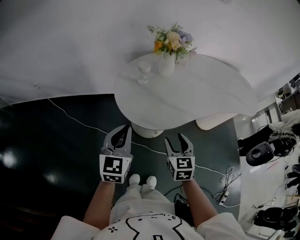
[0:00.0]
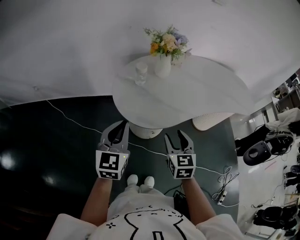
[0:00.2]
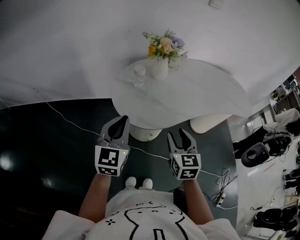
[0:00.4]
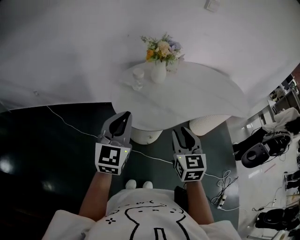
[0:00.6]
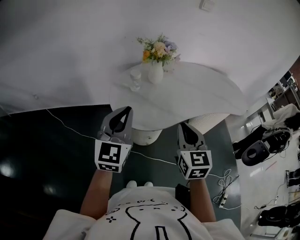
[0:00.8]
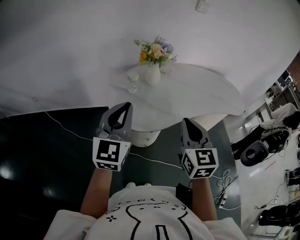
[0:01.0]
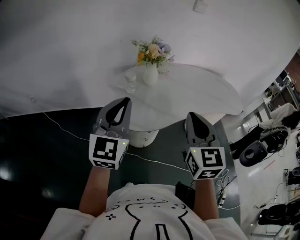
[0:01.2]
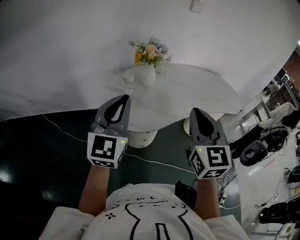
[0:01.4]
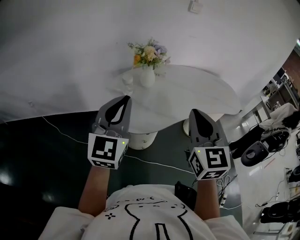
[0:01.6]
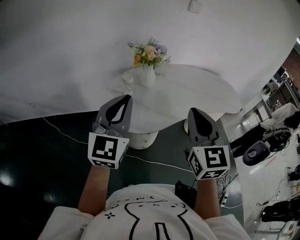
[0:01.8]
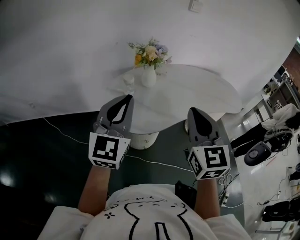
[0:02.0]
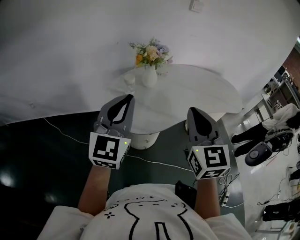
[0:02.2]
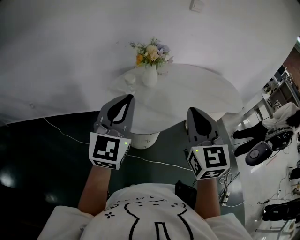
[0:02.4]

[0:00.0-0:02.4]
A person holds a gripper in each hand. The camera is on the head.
0:00.0 to 0:01.2: Both grippers move upward, approximately 20 cm. The left gripper turns by roughly 20 degrees. The right gripper swivels about 20 degrees, and closes up.
0:01.2 to 0:02.4: The grippers stay close to where they were, moving slightly.

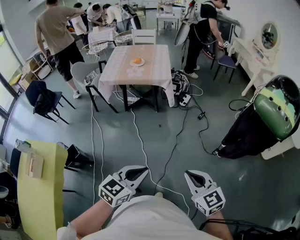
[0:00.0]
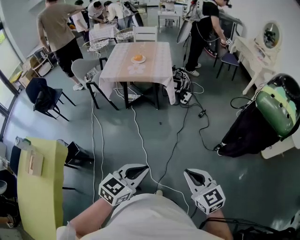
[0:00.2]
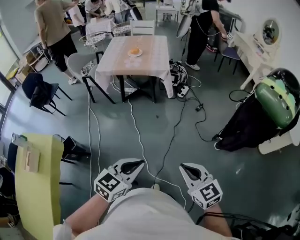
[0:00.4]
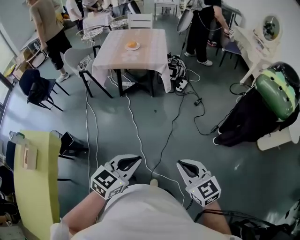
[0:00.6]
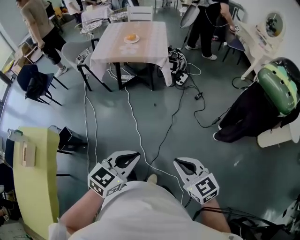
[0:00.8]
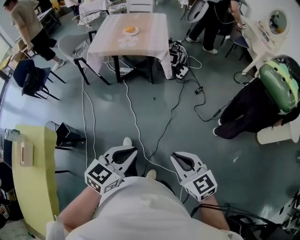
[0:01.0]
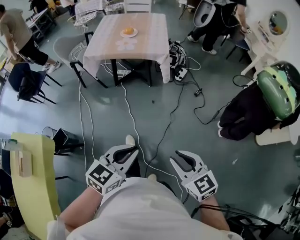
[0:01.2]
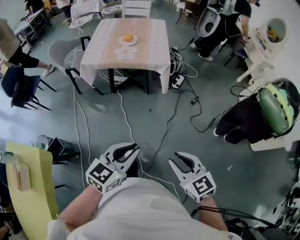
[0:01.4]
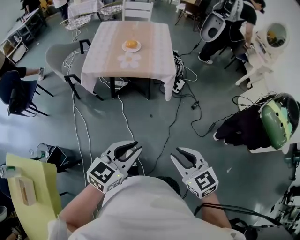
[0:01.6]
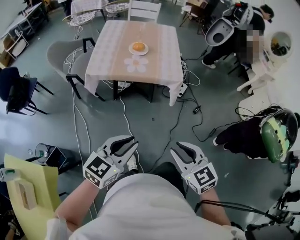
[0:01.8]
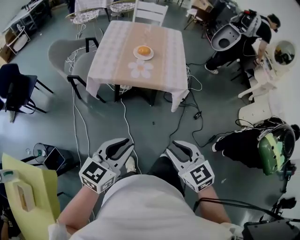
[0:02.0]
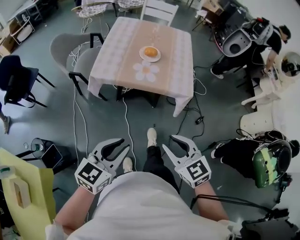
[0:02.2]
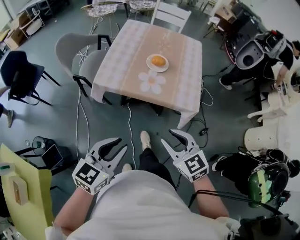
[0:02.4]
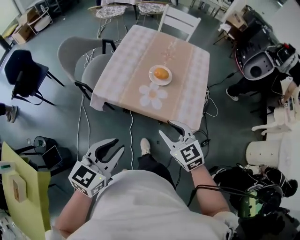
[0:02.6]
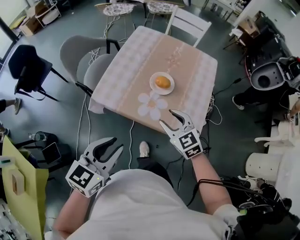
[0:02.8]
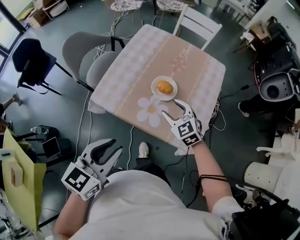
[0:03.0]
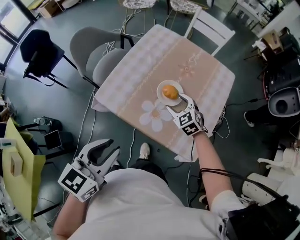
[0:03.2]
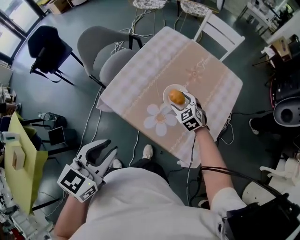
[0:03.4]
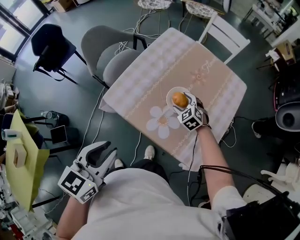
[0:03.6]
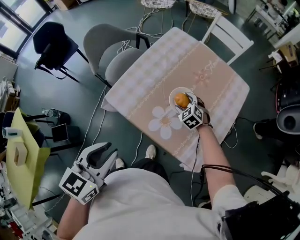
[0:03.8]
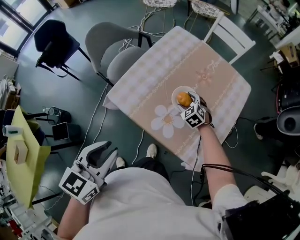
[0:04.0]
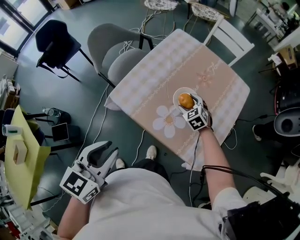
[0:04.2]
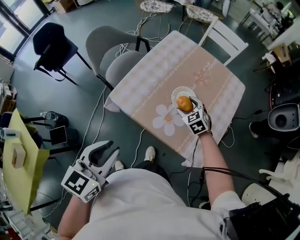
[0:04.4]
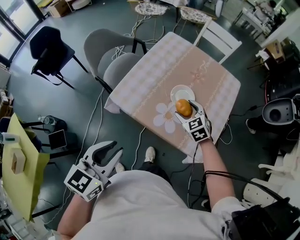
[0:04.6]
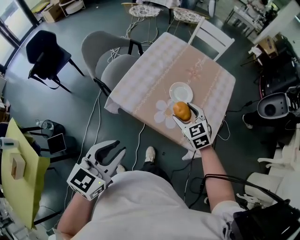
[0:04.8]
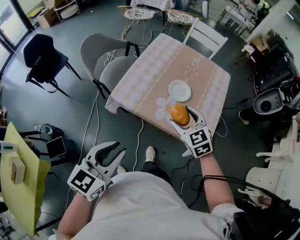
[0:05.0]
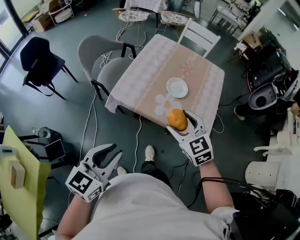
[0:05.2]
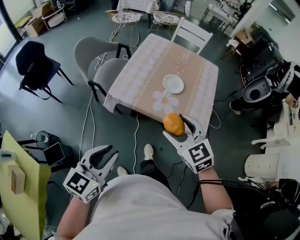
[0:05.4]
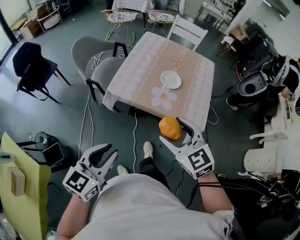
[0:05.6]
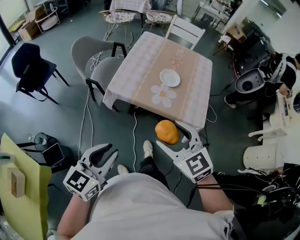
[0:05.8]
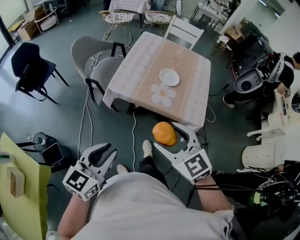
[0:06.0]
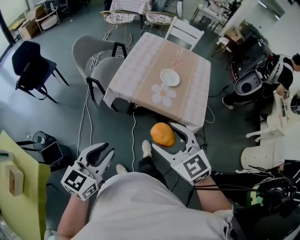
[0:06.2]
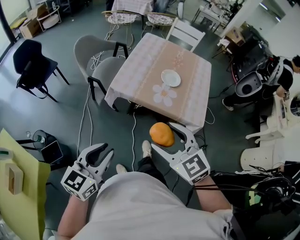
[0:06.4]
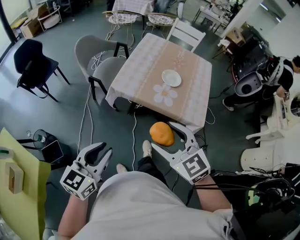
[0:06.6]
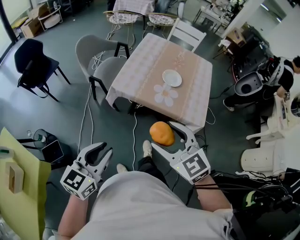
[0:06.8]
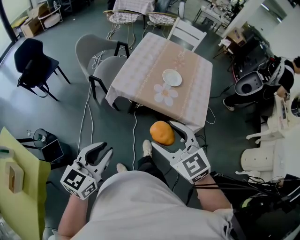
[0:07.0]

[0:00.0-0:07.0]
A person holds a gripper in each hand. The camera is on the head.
0:00.0 to 0:01.4: Both grippers travel together forward and to the left, roughly 20 cm.
0:01.4 to 0:02.8: The two grippers travel together, forward, some 60 cm. The right gripper changes its angle by about 30 degrees, while the left gripper turns by roughly 30 degrees.
0:02.8 to 0:04.2: The left gripper travels forward by approximately 5 cm, and swivels some 20 degrees. Meanwhile the right gripper is displaced forward and downward by approximately 25 cm, changes its angle by approximately 20 degrees, and opens up.
0:04.2 to 0:05.6: The right gripper travels backward and upward by some 50 cm, and swivels roughly 30 degrees. The left gripper goes about 20 cm backward and to the left, and rotates about 20 degrees.
0:05.6 to 0:07.0: The left gripper ends up approximately 5 cm from where it was. The right gripper goes roughly 10 cm backward and to the left.

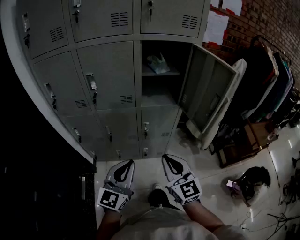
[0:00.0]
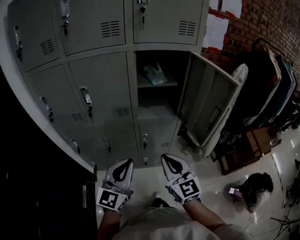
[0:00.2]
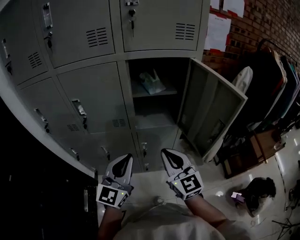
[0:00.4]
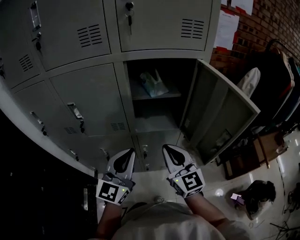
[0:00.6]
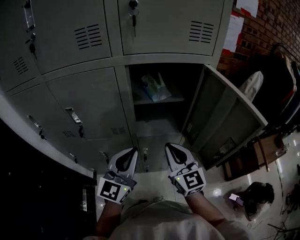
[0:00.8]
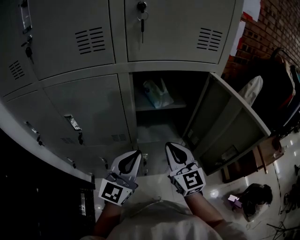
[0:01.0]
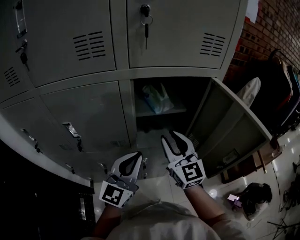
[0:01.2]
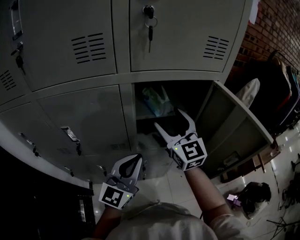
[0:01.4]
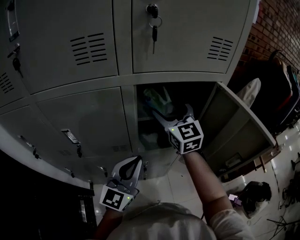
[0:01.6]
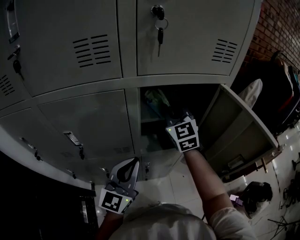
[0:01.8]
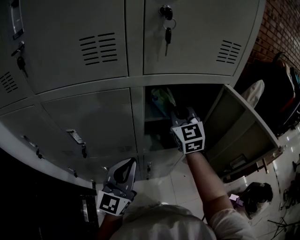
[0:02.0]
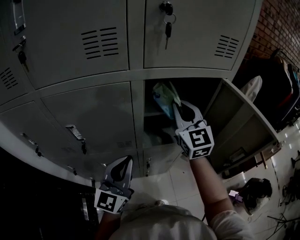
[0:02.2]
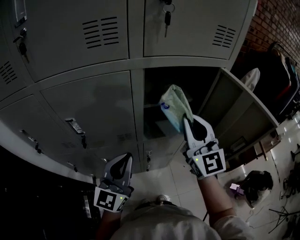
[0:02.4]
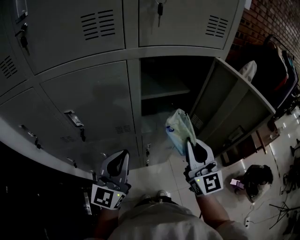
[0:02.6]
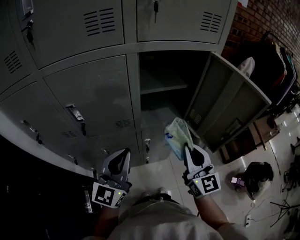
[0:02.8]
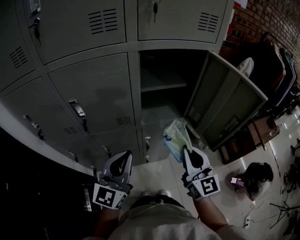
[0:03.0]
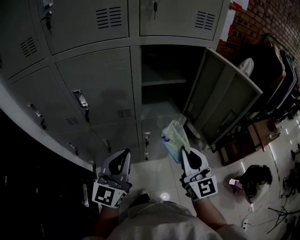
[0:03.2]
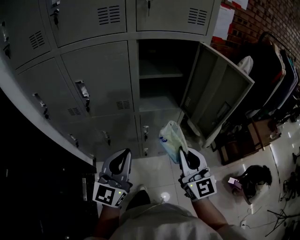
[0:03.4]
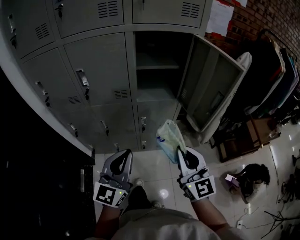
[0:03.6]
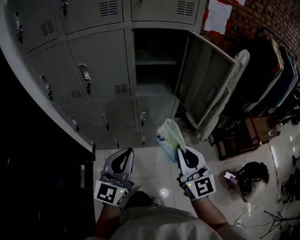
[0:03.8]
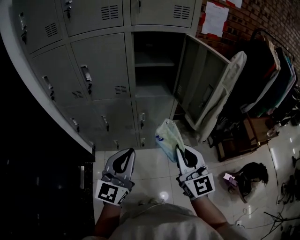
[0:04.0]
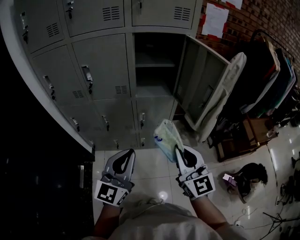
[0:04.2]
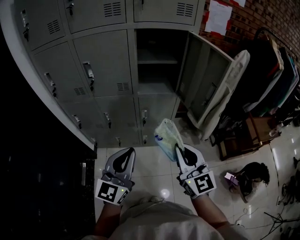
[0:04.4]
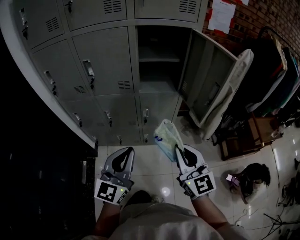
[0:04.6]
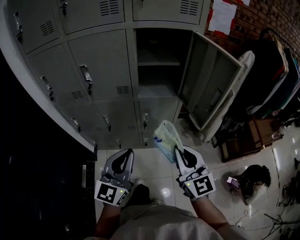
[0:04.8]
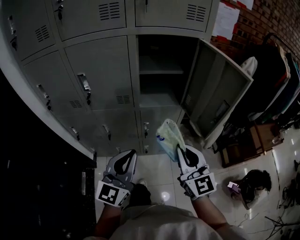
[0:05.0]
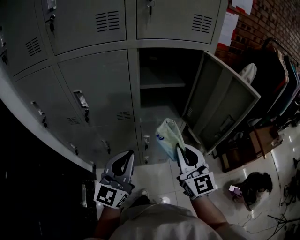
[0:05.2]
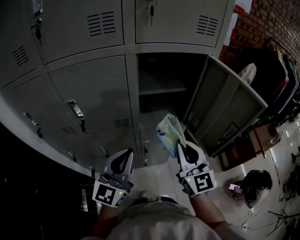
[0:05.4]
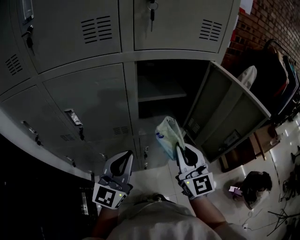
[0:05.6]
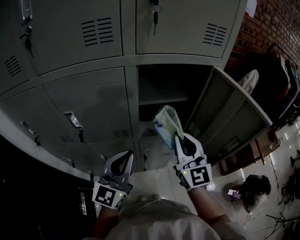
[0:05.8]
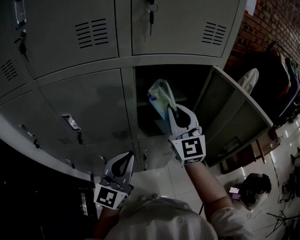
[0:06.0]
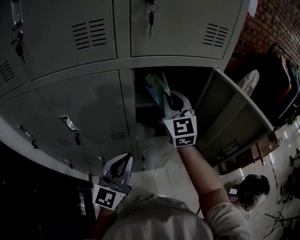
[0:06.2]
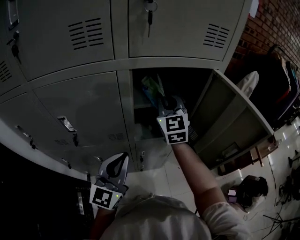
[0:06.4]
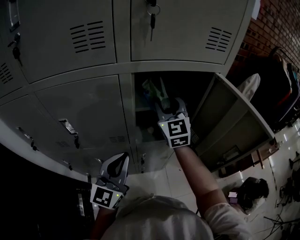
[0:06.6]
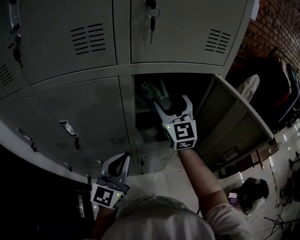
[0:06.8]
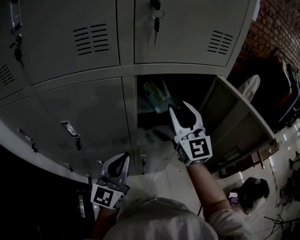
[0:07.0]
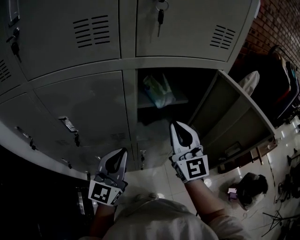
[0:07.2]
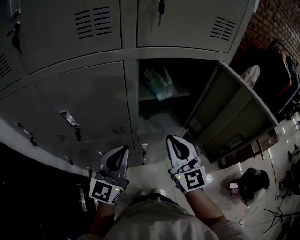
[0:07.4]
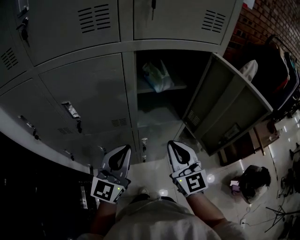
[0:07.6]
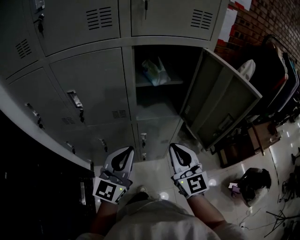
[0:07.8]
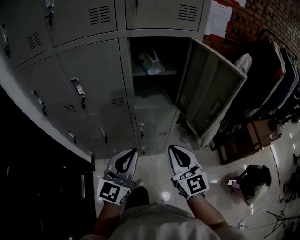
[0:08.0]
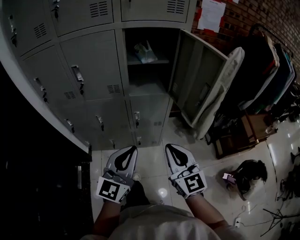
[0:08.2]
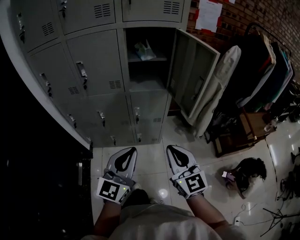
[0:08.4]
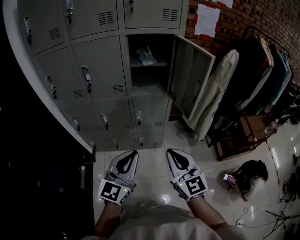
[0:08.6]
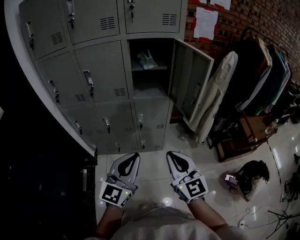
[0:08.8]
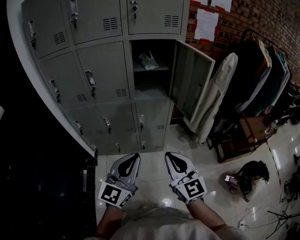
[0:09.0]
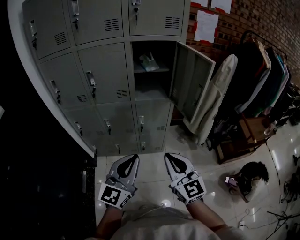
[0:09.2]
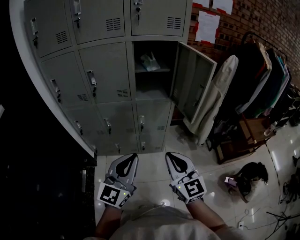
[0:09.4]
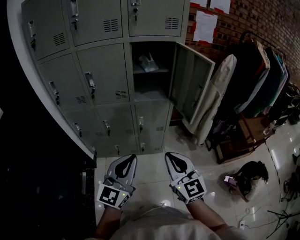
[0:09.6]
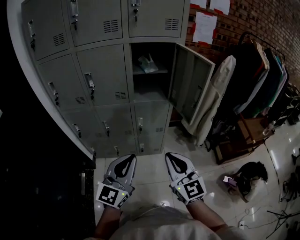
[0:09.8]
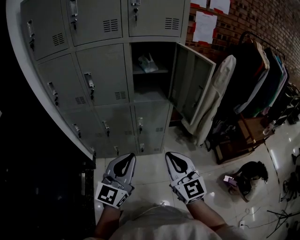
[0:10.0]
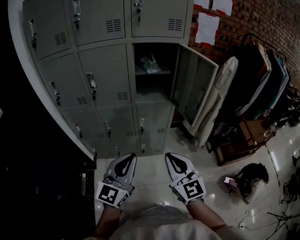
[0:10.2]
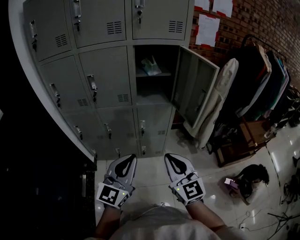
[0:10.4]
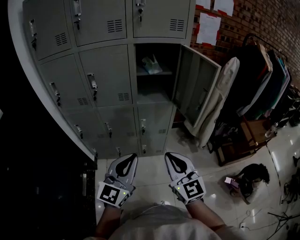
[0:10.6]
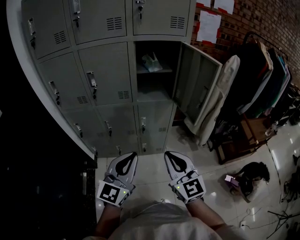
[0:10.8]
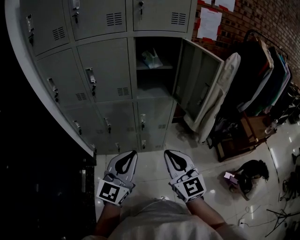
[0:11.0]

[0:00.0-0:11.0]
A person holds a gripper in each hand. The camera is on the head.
0:00.0 to 0:01.6: The left gripper goes roughly 30 cm forward; the right gripper is displaced forward by roughly 40 cm, and opens.
0:01.6 to 0:03.2: The left gripper travels backward by approximately 15 cm. Meanwhile the right gripper goes about 30 cm backward, and closes its fingers.
0:03.2 to 0:04.8: The right gripper goes about 10 cm backward. Meanwhile the left gripper travels backward and to the right by about 15 cm.
0:04.8 to 0:06.2: The right gripper heads forward, covering some 40 cm, and rotates some 20 degrees. Meanwhile the left gripper heads forward, covering about 25 cm.
0:06.2 to 0:07.8: The left gripper heads backward, covering about 10 cm. Meanwhile the right gripper heads backward and downward, covering some 30 cm, and opens, then closes once more.
0:07.8 to 0:09.4: Both grippers move backward, approximately 25 cm.
0:09.4 to 0:11.0: The grippers move only a little.

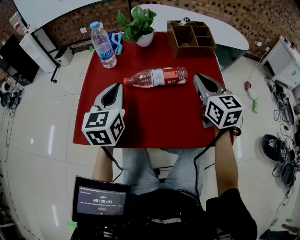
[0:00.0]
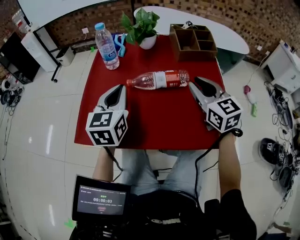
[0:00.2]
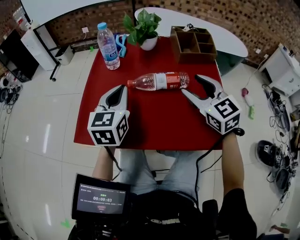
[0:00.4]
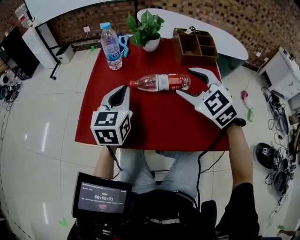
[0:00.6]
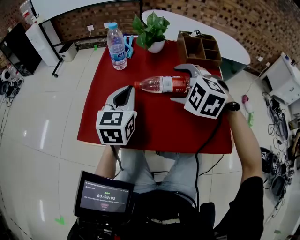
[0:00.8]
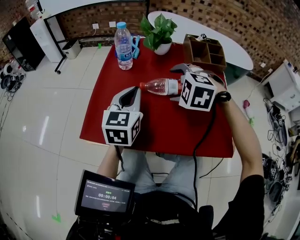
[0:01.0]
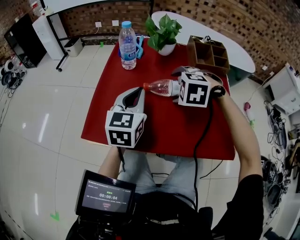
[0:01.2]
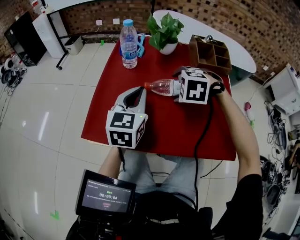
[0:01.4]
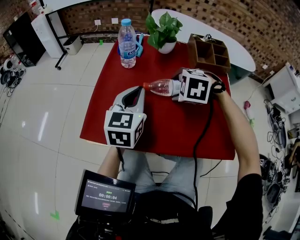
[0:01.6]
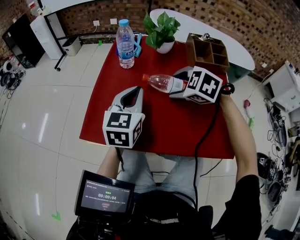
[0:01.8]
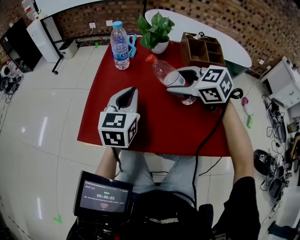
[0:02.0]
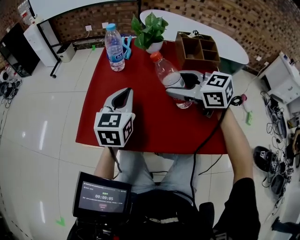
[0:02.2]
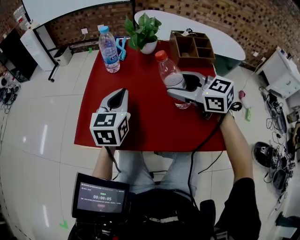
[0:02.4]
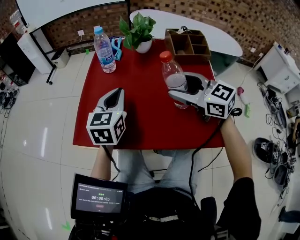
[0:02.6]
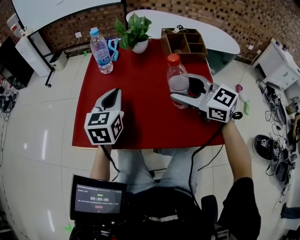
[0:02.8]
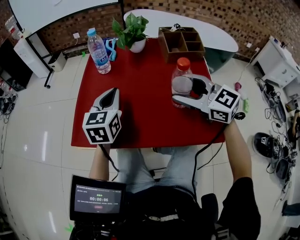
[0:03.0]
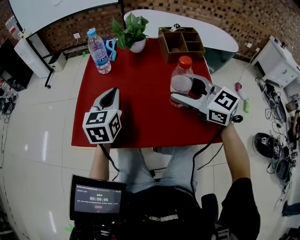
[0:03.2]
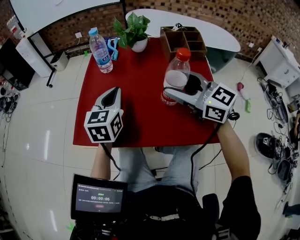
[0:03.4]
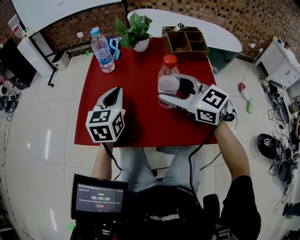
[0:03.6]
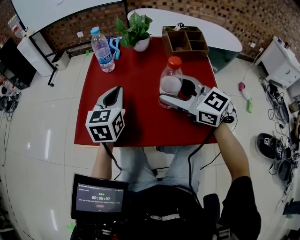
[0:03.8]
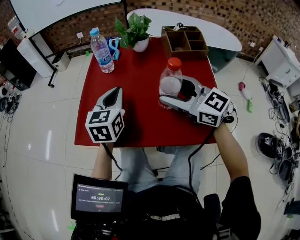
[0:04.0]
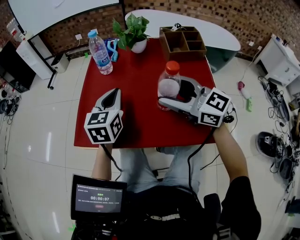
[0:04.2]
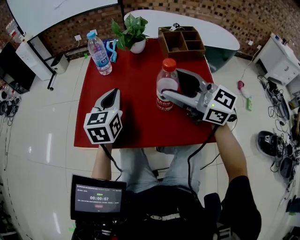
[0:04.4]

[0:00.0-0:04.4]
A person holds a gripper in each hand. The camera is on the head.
0:00.0 to 0:01.4: The right gripper shifts roughly 15 cm to the left and downward, points its fingers approximately 60 degrees further downward, and opens.
0:01.4 to 0:03.0: The right gripper is displaced upward, backward and to the right by roughly 15 cm, and points its fingers about 60 degrees further upward.
0:03.0 to 0:04.4: The right gripper moves upward, roughly 5 cm, and changes its angle by approximately 20 degrees.
